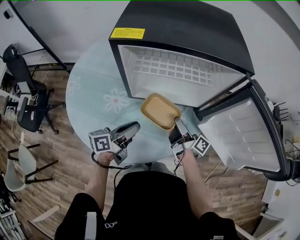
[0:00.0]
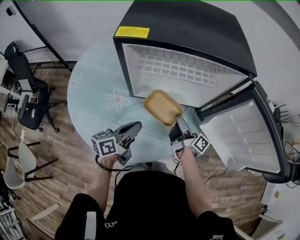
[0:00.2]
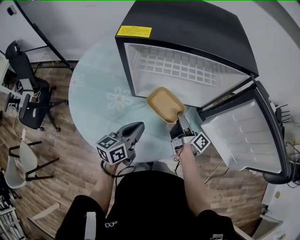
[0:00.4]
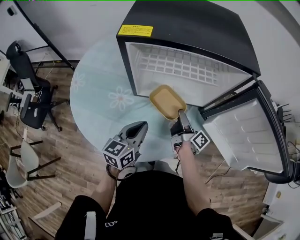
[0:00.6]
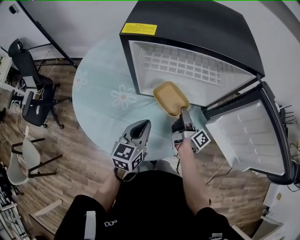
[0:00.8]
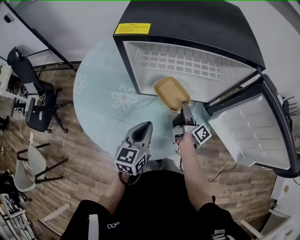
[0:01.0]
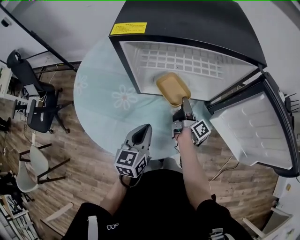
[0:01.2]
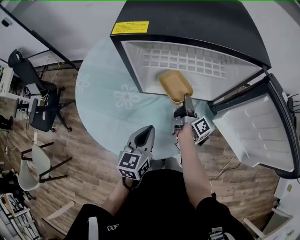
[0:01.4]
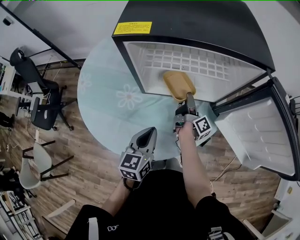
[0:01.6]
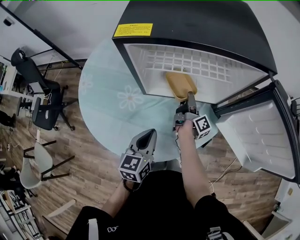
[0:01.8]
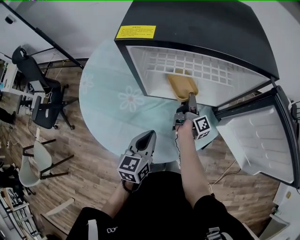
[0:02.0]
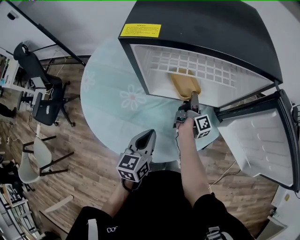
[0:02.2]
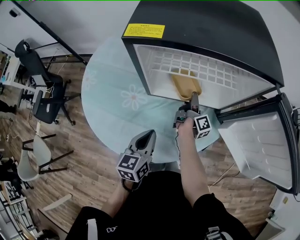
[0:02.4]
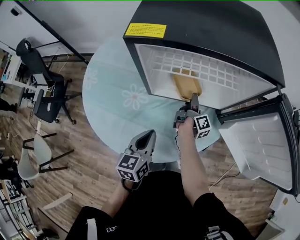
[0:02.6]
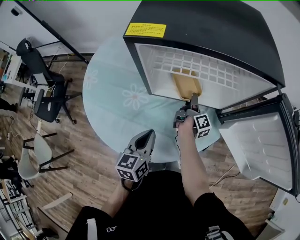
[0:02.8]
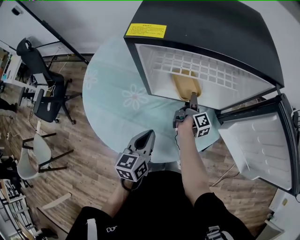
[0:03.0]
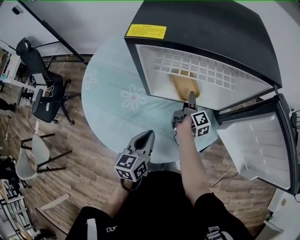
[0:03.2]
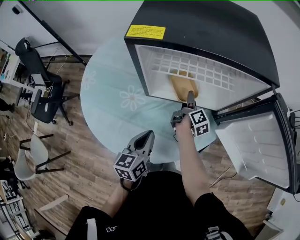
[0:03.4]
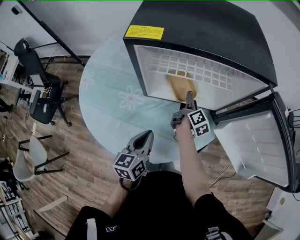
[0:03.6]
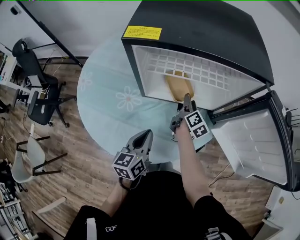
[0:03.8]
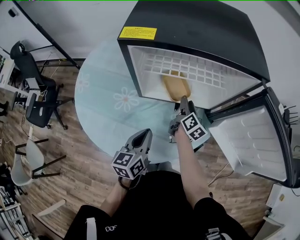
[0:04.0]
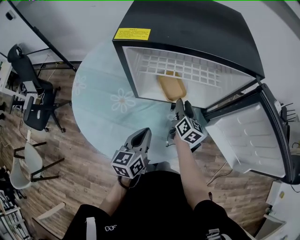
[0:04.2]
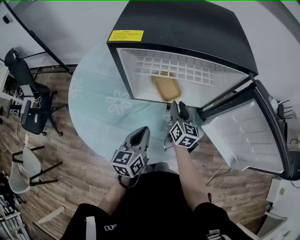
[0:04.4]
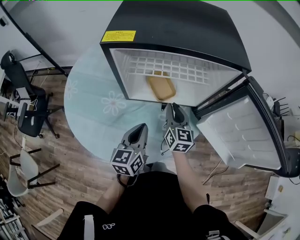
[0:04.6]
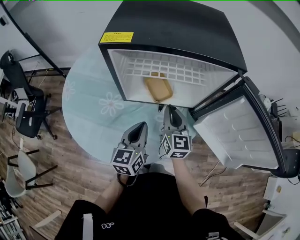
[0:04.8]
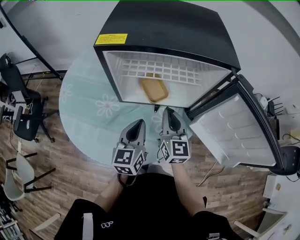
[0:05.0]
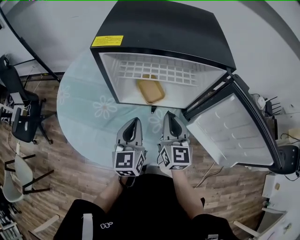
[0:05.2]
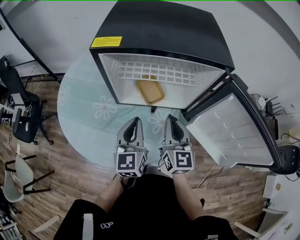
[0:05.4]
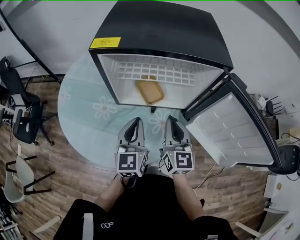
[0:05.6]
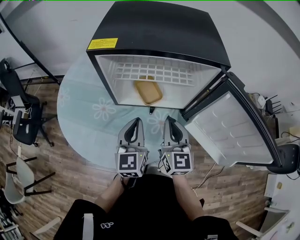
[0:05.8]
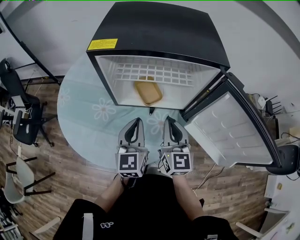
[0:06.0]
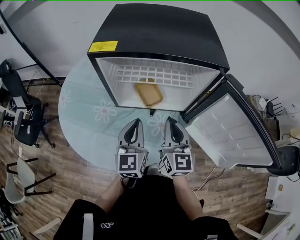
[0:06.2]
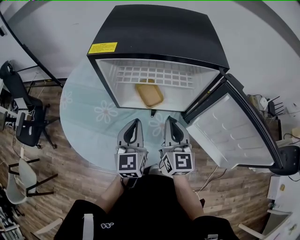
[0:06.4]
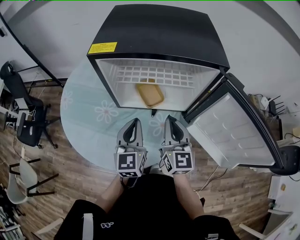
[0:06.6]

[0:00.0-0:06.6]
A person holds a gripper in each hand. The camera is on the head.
0:00.0 to 0:01.6: The right gripper moves forward and downward, approximately 10 cm, and rotates approximately 30 degrees. The left gripper rotates about 40 degrees, and closes up.
0:01.6 to 0:03.2: The grippers move only a little.
0:03.2 to 0:05.0: The left gripper is displaced to the right and upward by roughly 10 cm. The right gripper heads upward and backward, covering about 20 cm, rotates around the line of its fingers by roughly 70 degrees, counterclockwise from behind, and closes.
0:05.0 to 0:06.6: The grippers move only a little.

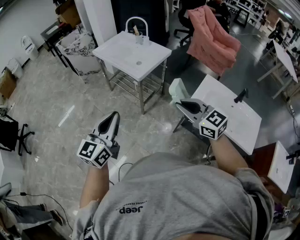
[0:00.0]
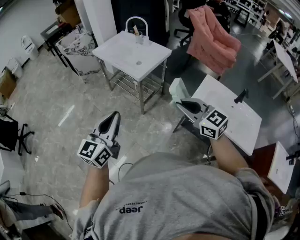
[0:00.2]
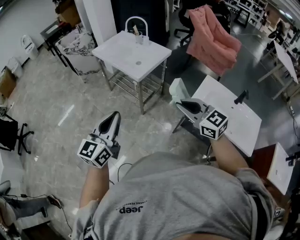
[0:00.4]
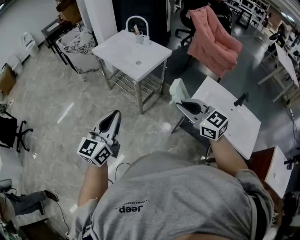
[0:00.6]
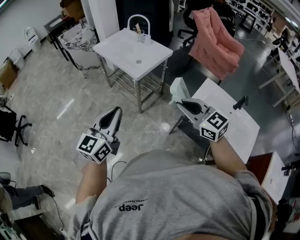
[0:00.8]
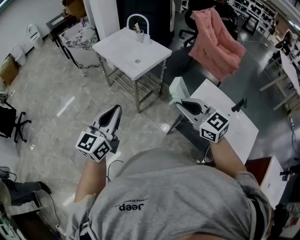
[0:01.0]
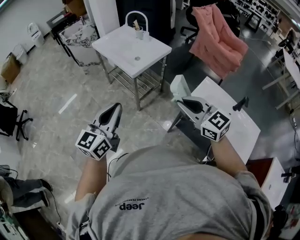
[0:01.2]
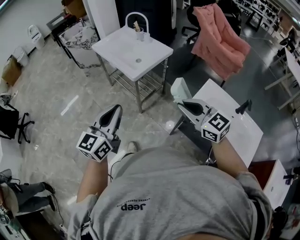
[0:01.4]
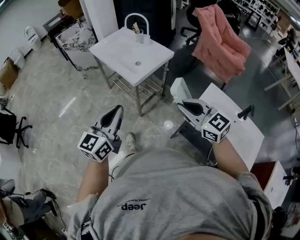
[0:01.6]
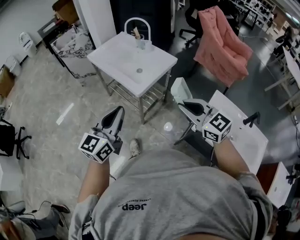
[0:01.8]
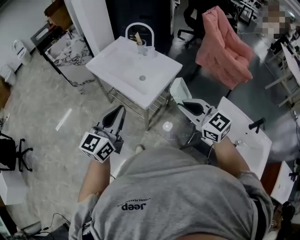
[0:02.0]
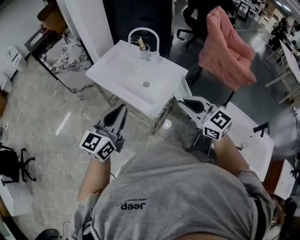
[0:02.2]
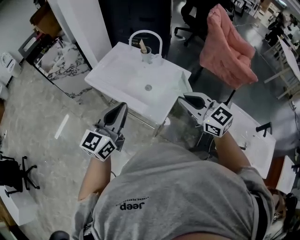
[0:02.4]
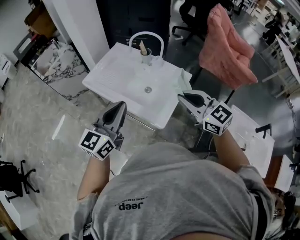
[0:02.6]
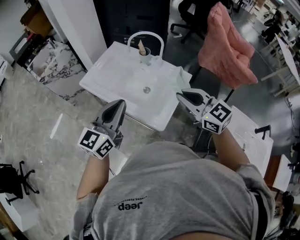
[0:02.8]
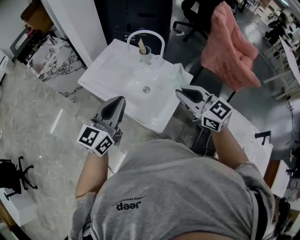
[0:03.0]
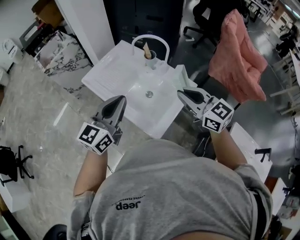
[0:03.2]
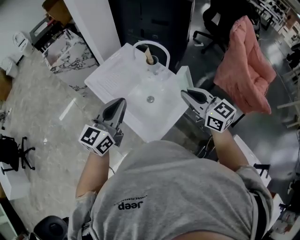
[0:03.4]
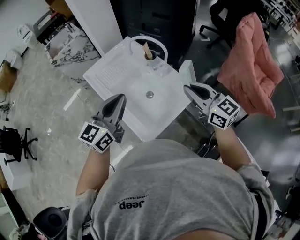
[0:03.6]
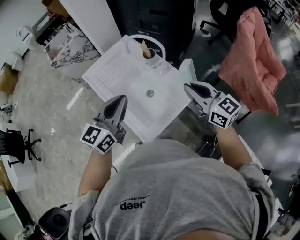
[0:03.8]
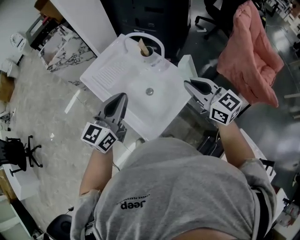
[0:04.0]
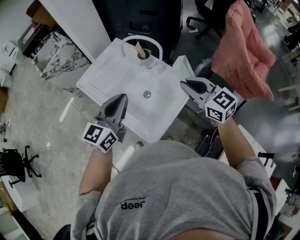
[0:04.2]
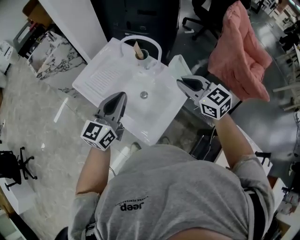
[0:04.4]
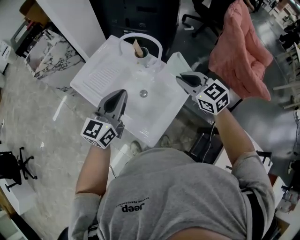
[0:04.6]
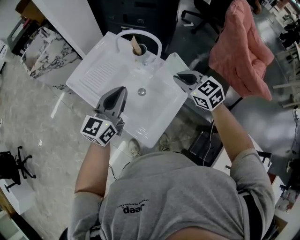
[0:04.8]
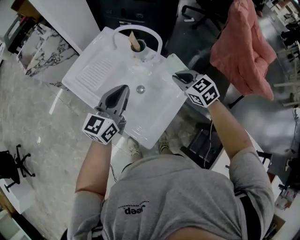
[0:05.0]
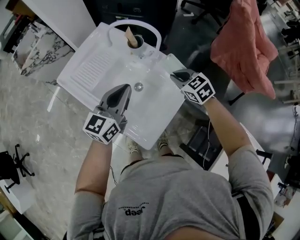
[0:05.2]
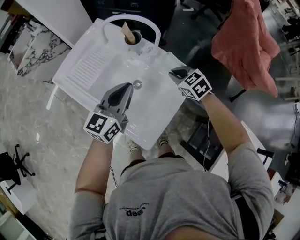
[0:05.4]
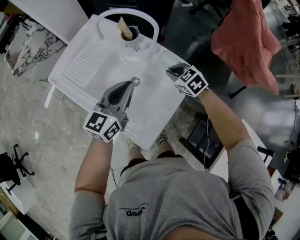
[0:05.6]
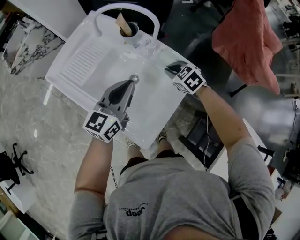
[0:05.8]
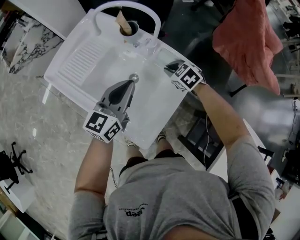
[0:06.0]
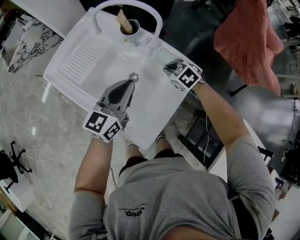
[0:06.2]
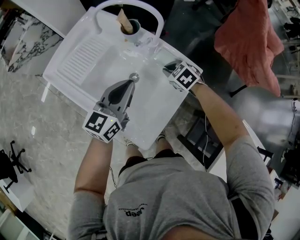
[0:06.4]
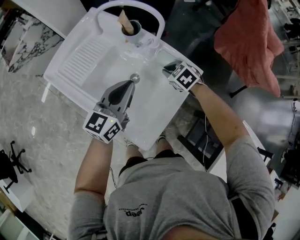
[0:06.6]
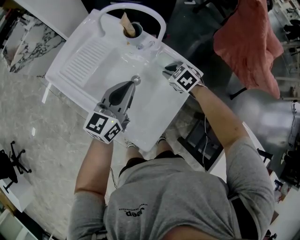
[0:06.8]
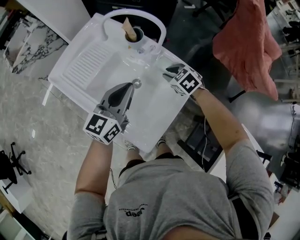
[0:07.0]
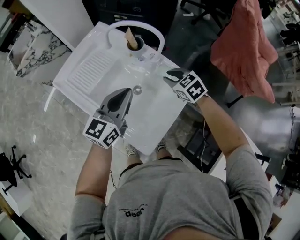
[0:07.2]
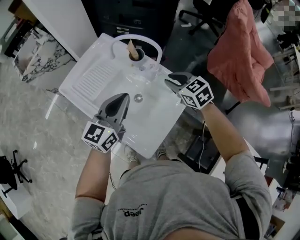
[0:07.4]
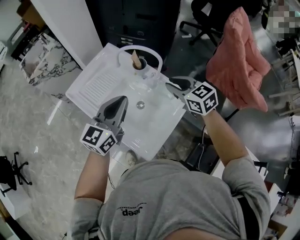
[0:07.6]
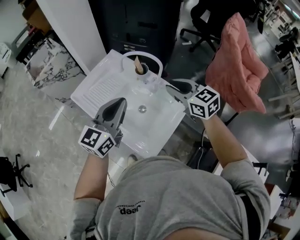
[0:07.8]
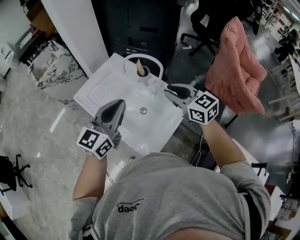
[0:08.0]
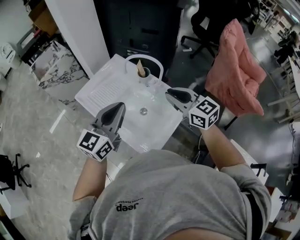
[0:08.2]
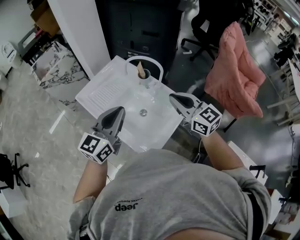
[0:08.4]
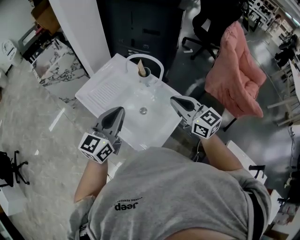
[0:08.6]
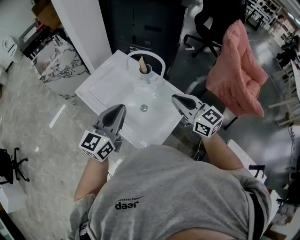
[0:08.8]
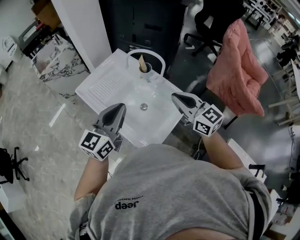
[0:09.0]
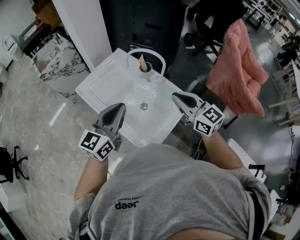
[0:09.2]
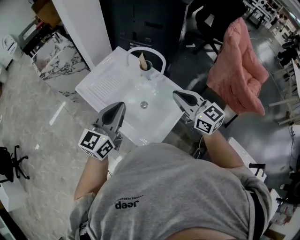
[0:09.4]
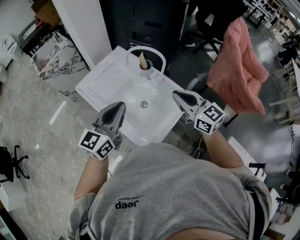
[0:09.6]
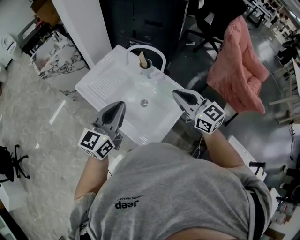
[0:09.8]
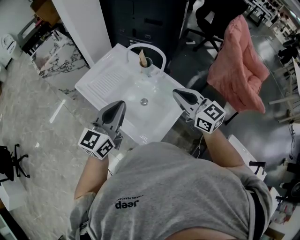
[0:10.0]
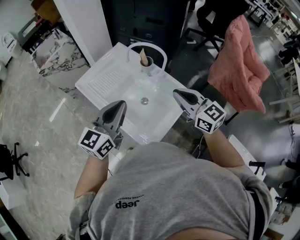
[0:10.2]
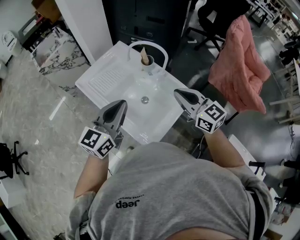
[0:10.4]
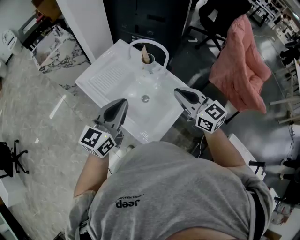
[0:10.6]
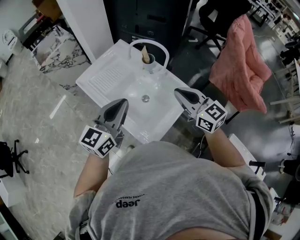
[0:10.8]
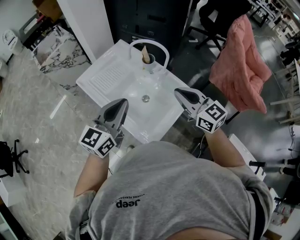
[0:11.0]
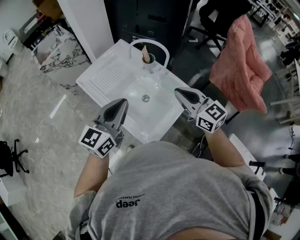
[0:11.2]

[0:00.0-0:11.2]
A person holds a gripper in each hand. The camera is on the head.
0:00.0 to 0:01.6: The two grippers go some 15 cm forward and to the right.
0:01.6 to 0:03.2: Both grippers are carried forward, about 50 cm.
0:03.2 to 0:04.8: The left gripper heads forward, to the right and downward, covering approximately 15 cm. Meanwhile the right gripper is displaced forward, downward and to the right by roughly 20 cm, and turns by some 20 degrees.
0:04.8 to 0:06.4: The left gripper travels downward and to the right by approximately 15 cm. The right gripper moves downward, approximately 25 cm, and swivels some 30 degrees.
0:06.4 to 0:08.0: The right gripper shifts roughly 35 cm upward, and tilts its fingers approximately 40 degrees upward; the left gripper moves upward, some 20 cm.
0:08.0 to 0:09.6: The right gripper shifts roughly 5 cm backward, and closes up.
0:09.6 to 0:11.2: Both grippers stay put.

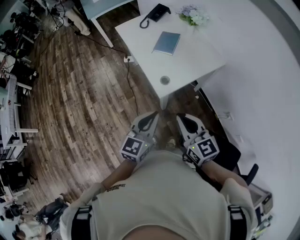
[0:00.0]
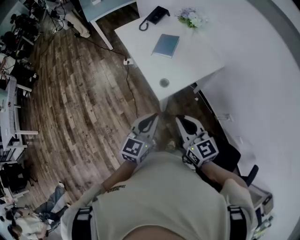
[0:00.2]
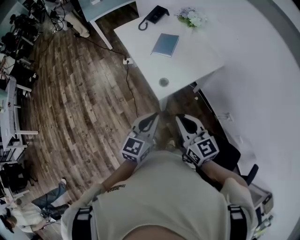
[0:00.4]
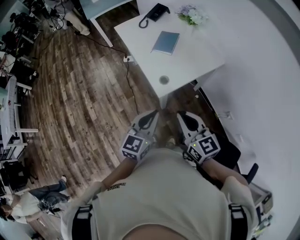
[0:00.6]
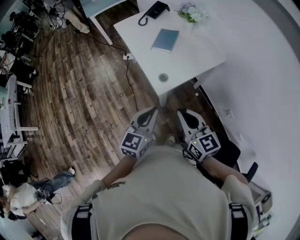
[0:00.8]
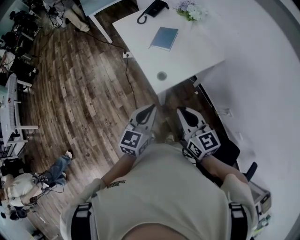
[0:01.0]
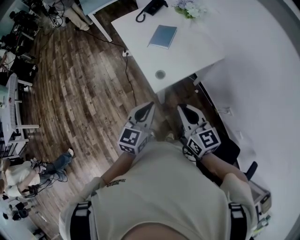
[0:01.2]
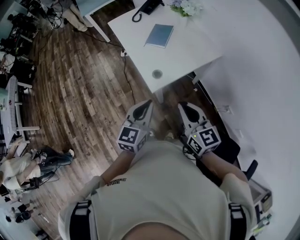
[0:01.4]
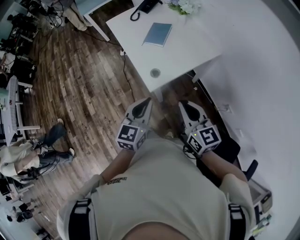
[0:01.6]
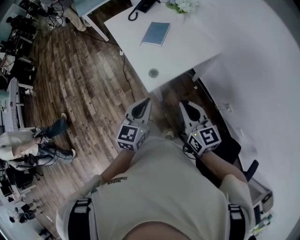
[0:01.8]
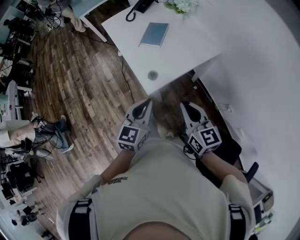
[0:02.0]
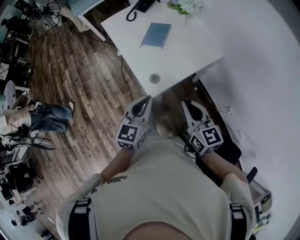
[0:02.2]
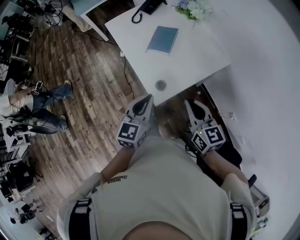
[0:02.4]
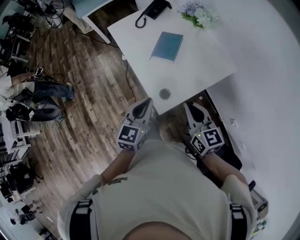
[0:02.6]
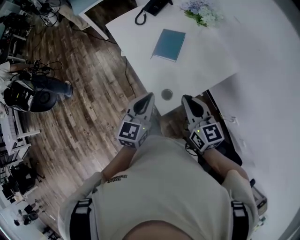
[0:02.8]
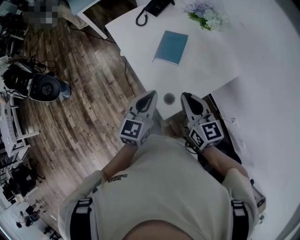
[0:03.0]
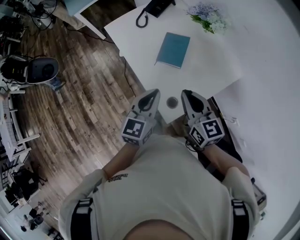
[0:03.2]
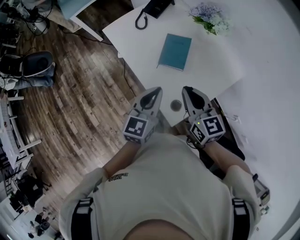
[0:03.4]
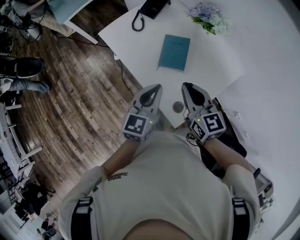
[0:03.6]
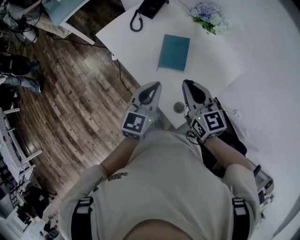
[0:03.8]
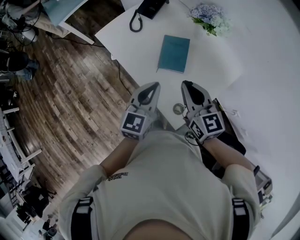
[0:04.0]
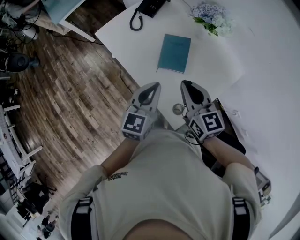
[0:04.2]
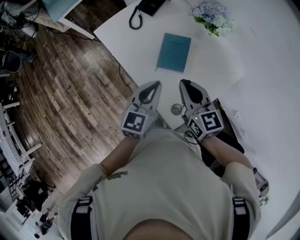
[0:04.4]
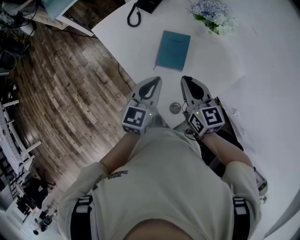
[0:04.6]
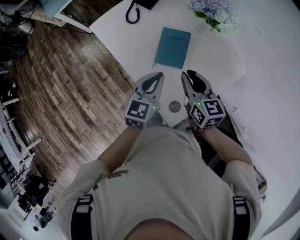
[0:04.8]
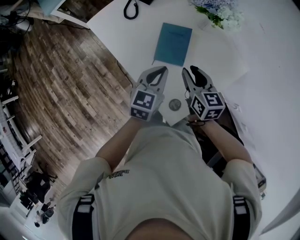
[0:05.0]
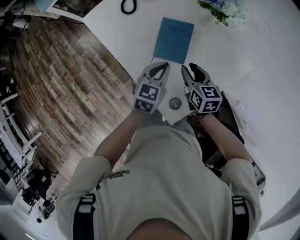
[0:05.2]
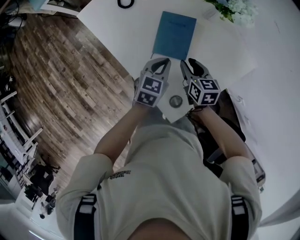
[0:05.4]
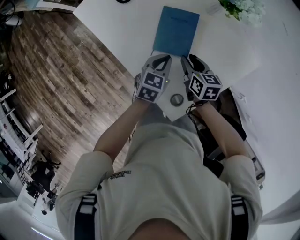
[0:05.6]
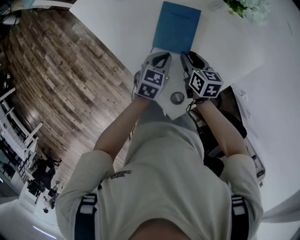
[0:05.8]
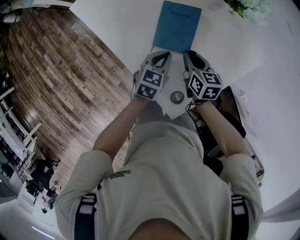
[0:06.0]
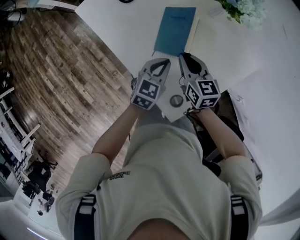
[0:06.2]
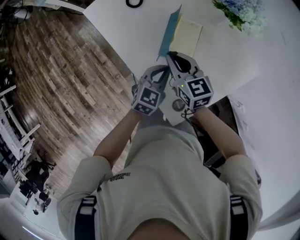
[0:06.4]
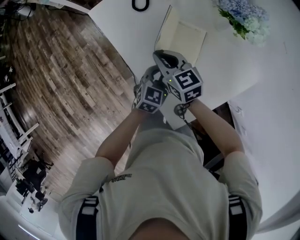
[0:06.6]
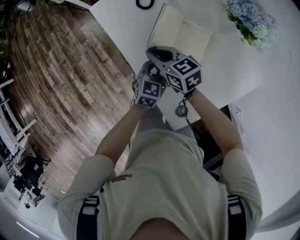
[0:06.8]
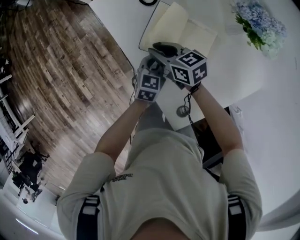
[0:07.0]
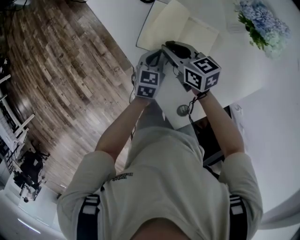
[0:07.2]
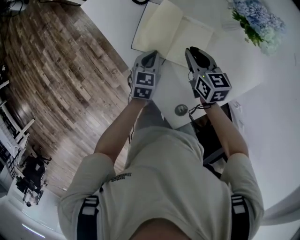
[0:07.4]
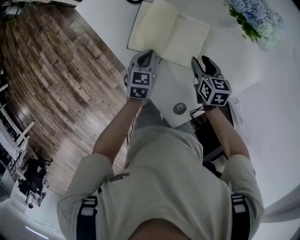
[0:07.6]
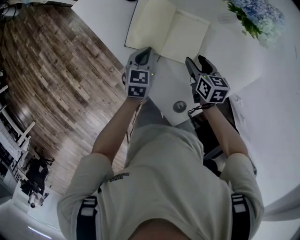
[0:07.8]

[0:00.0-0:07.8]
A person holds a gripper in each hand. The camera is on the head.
0:00.0 to 0:01.6: The left gripper changes place by roughly 5 cm, while the right gripper moves to the right, approximately 10 cm.
0:01.6 to 0:03.2: Both grippers travel together forward, roughly 25 cm.
0:03.2 to 0:04.6: Both grippers travel together forward, some 10 cm.
0:04.6 to 0:06.2: The left gripper heads downward, covering approximately 15 cm. The right gripper heads downward and forward, covering approximately 15 cm, and opens, then closes once more.
0:06.2 to 0:07.8: The left gripper changes place by approximately 15 cm; the right gripper is displaced downward by roughly 10 cm, and opens up.
